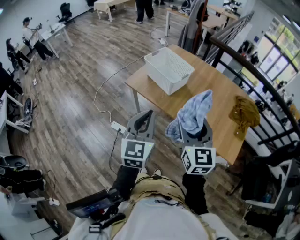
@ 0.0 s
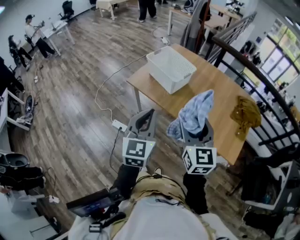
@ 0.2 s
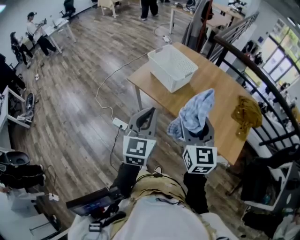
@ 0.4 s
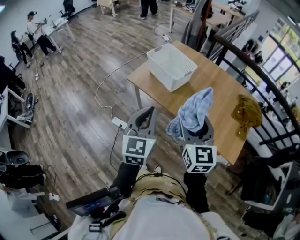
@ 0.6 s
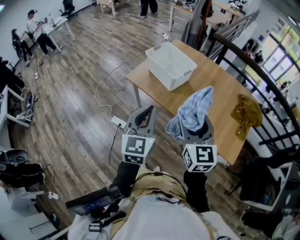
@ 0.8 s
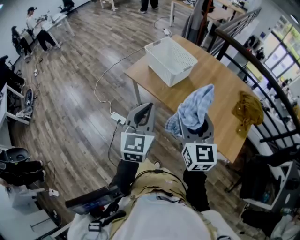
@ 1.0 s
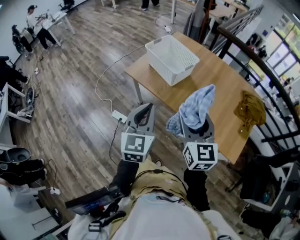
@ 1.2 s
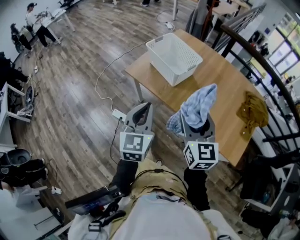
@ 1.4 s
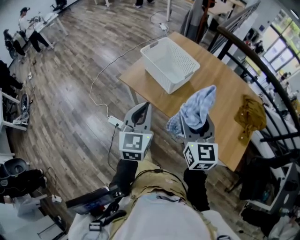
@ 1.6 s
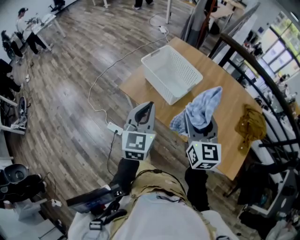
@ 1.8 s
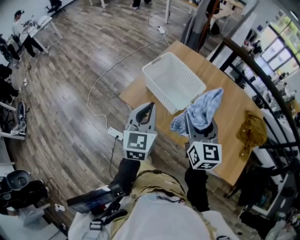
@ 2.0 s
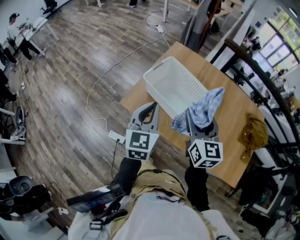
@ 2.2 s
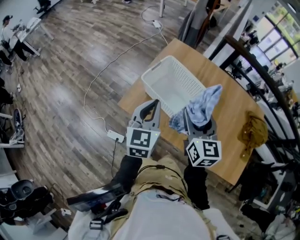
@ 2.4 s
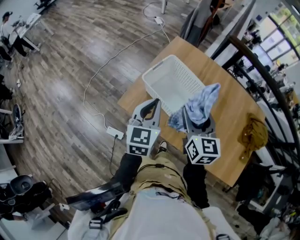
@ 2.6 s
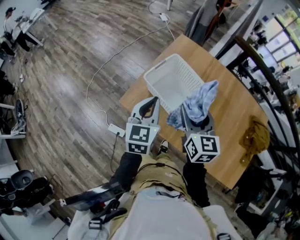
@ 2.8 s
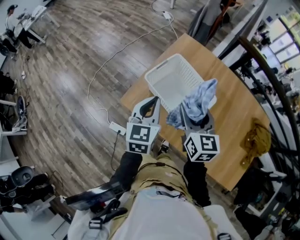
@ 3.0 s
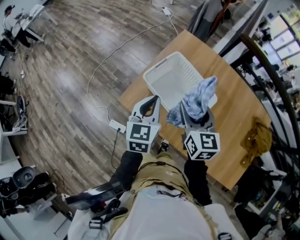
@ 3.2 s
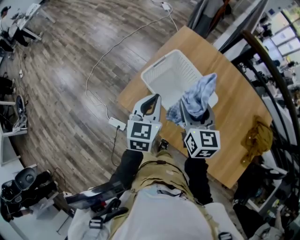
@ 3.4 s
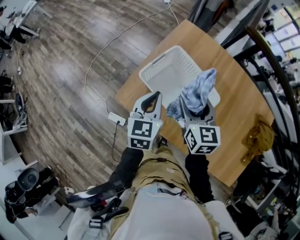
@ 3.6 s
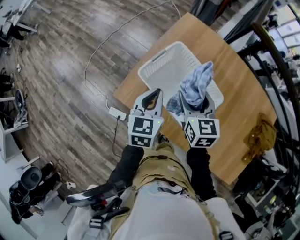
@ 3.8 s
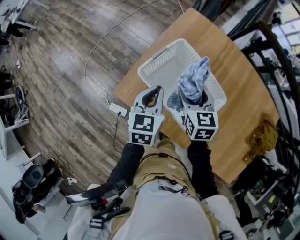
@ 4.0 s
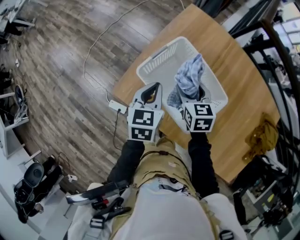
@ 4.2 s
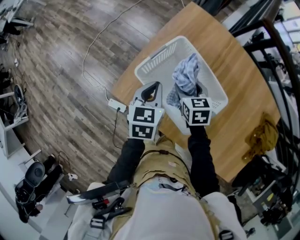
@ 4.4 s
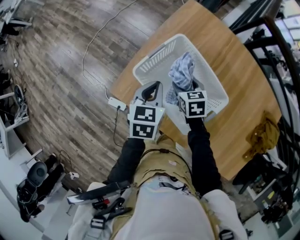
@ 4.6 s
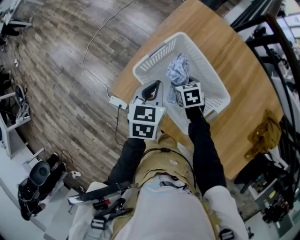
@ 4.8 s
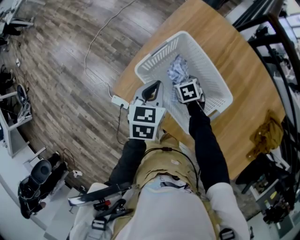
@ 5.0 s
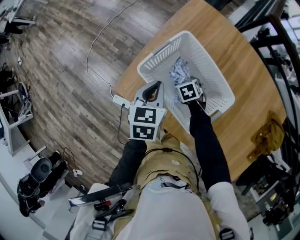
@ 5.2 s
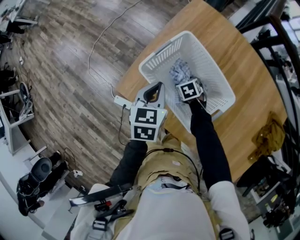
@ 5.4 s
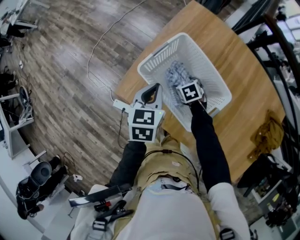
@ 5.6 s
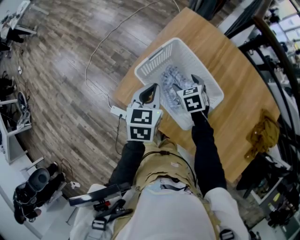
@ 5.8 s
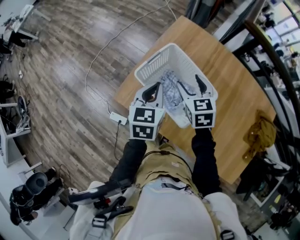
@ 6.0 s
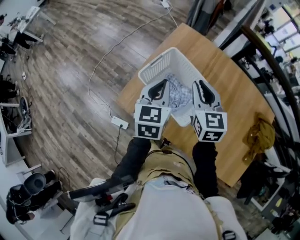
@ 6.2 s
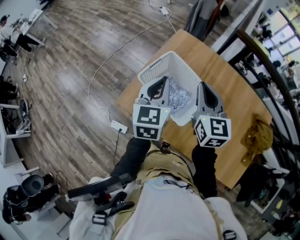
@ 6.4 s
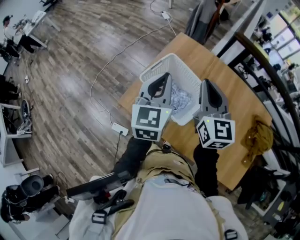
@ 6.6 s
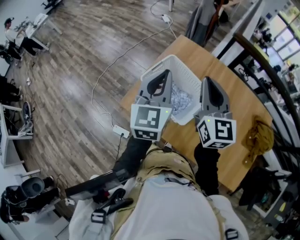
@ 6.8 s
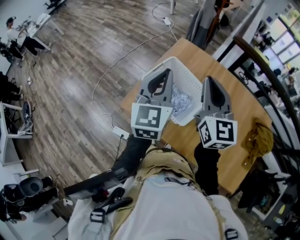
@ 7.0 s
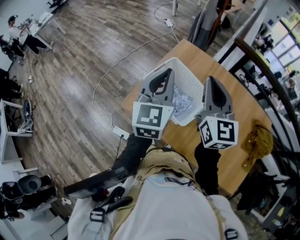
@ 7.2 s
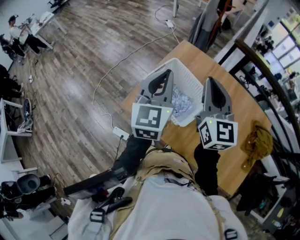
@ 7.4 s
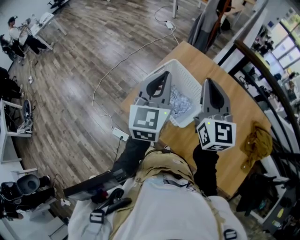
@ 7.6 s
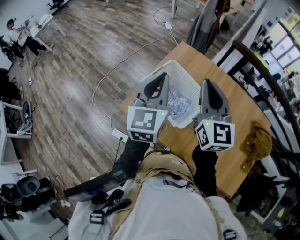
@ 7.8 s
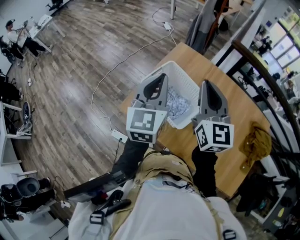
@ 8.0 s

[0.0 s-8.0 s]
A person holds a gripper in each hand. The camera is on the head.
0.0 to 1.6 s: Both grippers travel together forward and downward, some 15 cm.
1.6 to 3.2 s: The two grippers go approximately 30 cm forward.
3.2 to 4.8 s: The right gripper moves downward, about 30 cm, and tilts its fingers approximately 40 degrees downward. The left gripper shifts about 15 cm downward and forward, and swivels roughly 20 degrees.
4.8 to 6.4 s: The right gripper travels upward by about 35 cm, angles its fingers upward, by approximately 50 degrees, and closes its fingers; the left gripper travels upward by some 20 cm, and changes its angle by about 30 degrees.
6.4 to 8.0 s: The two grippers go approximately 10 cm upward.

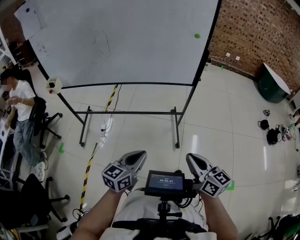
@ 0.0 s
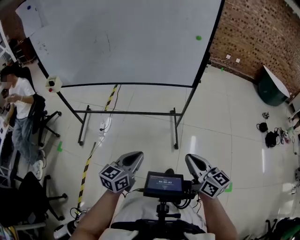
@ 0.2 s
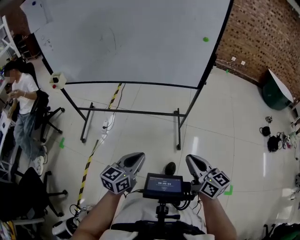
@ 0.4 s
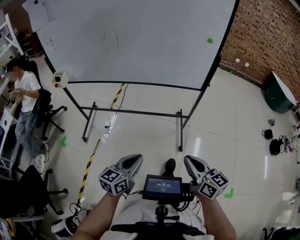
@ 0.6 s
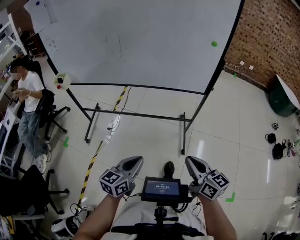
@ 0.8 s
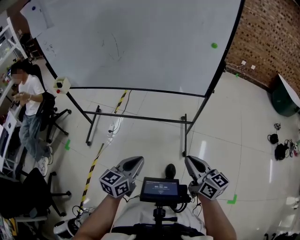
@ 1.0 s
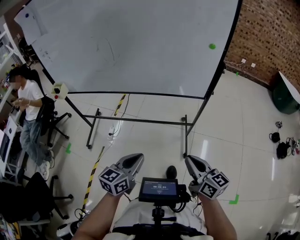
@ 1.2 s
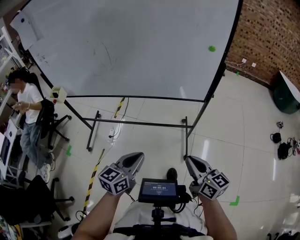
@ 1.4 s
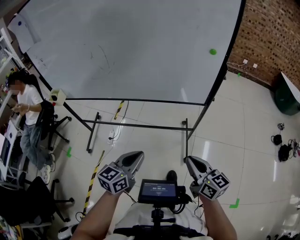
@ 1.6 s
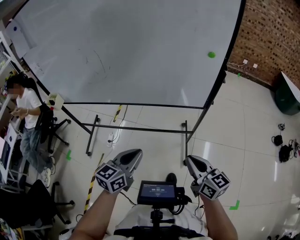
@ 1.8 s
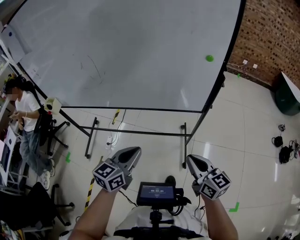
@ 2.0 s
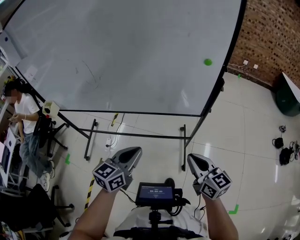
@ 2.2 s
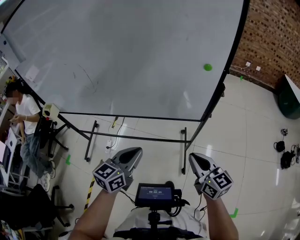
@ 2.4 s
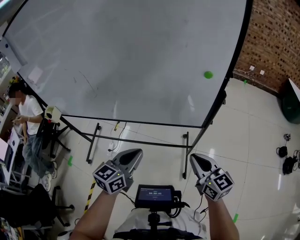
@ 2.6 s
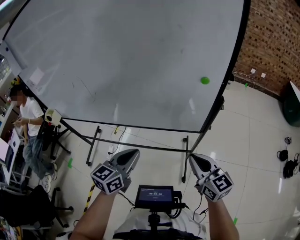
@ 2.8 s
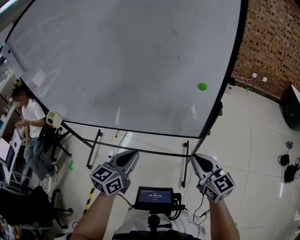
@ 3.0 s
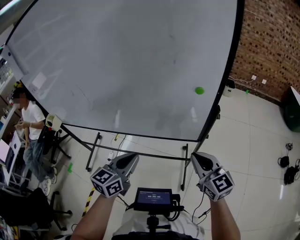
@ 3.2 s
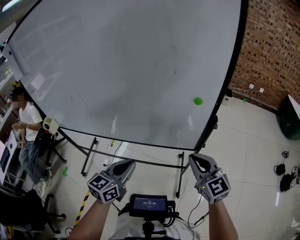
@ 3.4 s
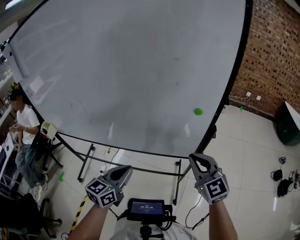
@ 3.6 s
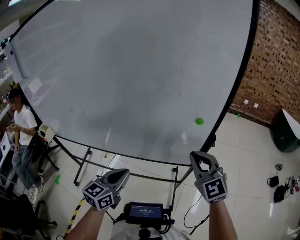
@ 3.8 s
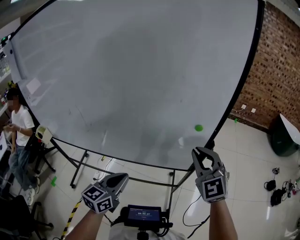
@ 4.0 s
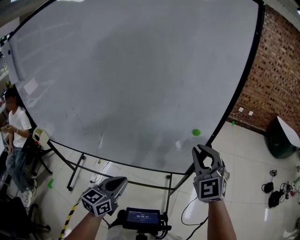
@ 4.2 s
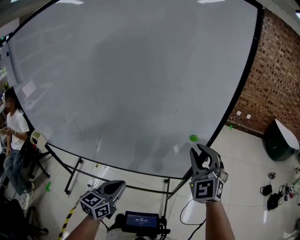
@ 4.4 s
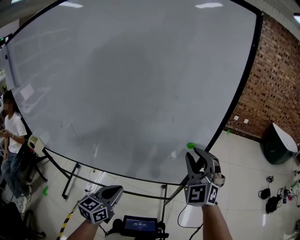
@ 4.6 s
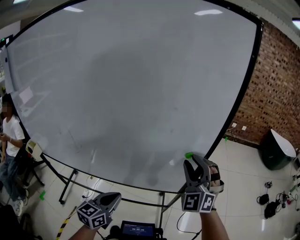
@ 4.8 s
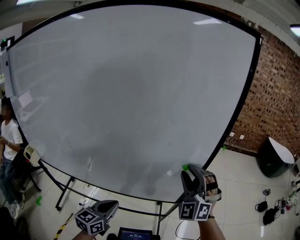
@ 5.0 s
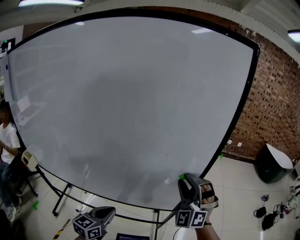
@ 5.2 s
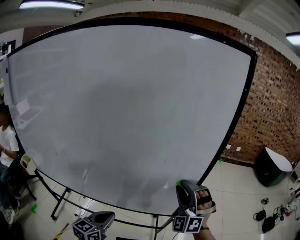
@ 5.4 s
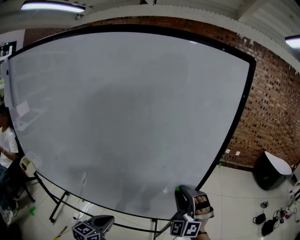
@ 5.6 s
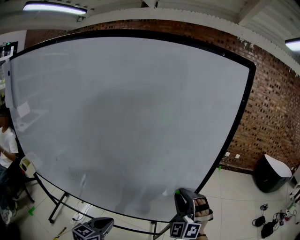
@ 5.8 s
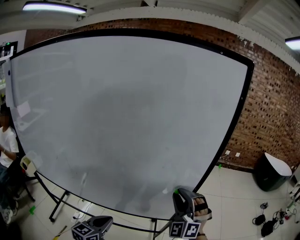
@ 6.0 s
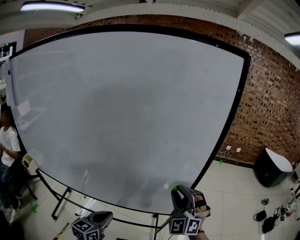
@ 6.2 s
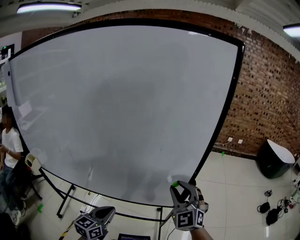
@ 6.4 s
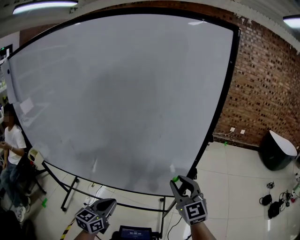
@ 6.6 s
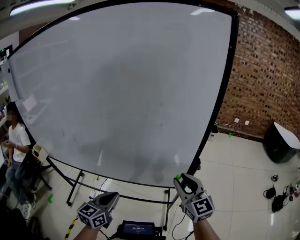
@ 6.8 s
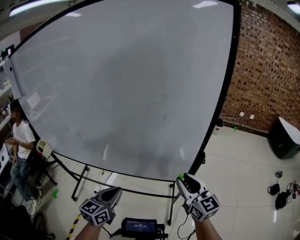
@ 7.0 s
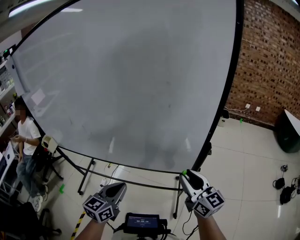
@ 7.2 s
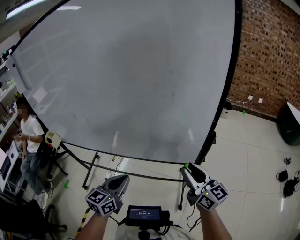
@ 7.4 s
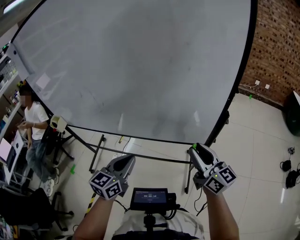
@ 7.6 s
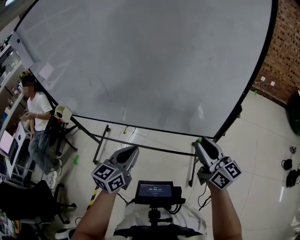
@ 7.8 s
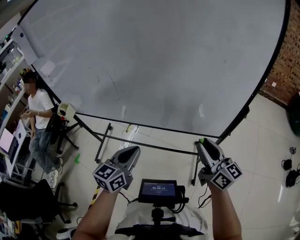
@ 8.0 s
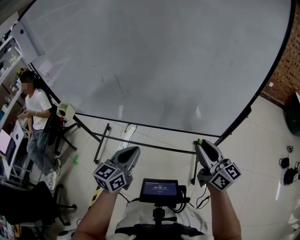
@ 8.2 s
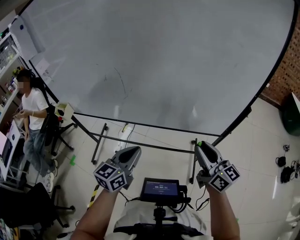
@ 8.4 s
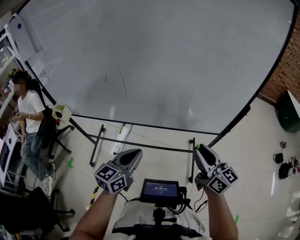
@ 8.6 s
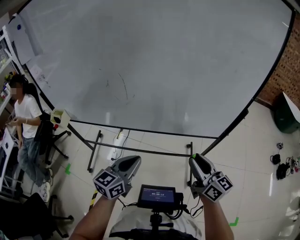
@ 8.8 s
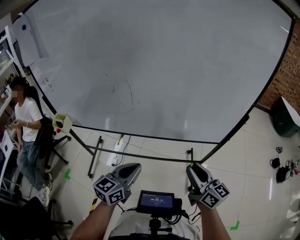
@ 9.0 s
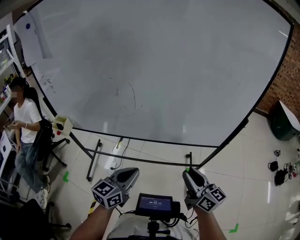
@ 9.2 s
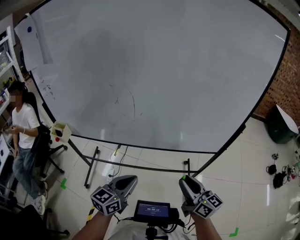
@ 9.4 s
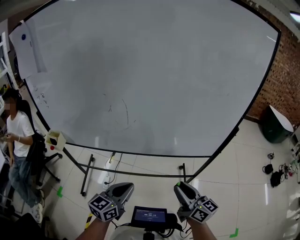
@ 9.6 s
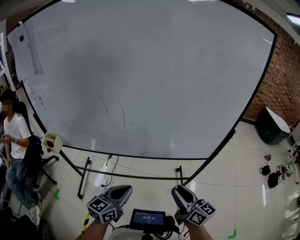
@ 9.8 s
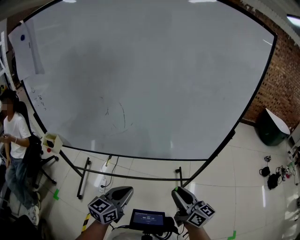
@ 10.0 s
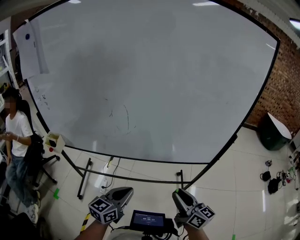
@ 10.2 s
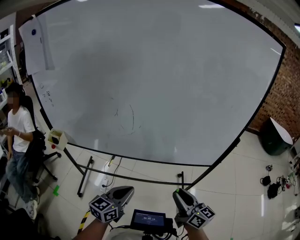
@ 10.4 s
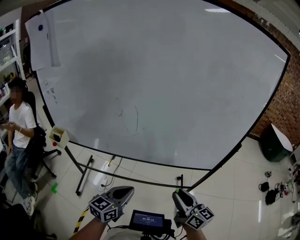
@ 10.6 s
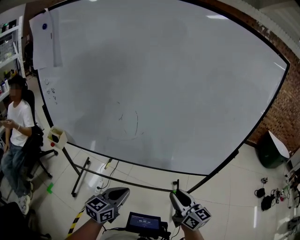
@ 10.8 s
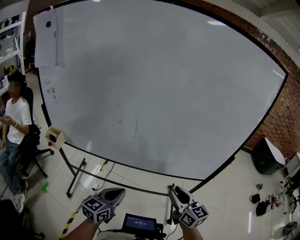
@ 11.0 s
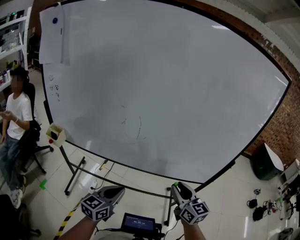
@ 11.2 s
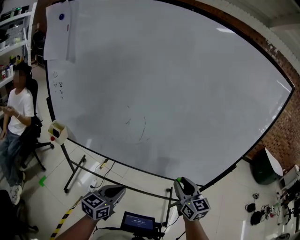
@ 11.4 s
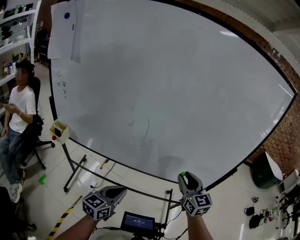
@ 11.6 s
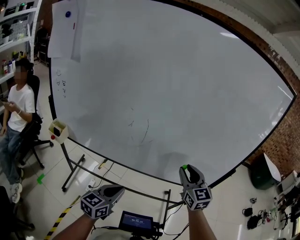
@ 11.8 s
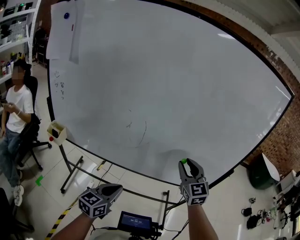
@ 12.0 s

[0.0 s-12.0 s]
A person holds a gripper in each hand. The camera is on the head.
0.0 to 1.6 s: The grippers both shift forward by some 20 cm.
1.6 to 3.0 s: The grippers both shift forward and to the right by approximately 25 cm.
3.0 to 4.4 s: The right gripper moves upward and forward, roughly 20 cm, and rotates around the line of its fingers by roughly 50 degrees, counterclockwise from behind; the left gripper is displaced forward by roughly 5 cm.
4.4 to 6.0 s: The right gripper moves roughly 5 cm, and swivels approximately 20 degrees.
6.0 to 7.6 s: The left gripper travels backward by approximately 5 cm. Meanwhile the right gripper moves backward and downward, about 15 cm, and rotates around the line of its fingers by some 90 degrees, clockwise from behind.
7.6 to 9.0 s: Both grippers travel together to the left, about 20 cm.
9.0 to 10.4 s: The right gripper moves to the left, about 5 cm.
10.4 to 12.0 s: The right gripper moves forward and upward, approximately 20 cm, and rolls counterclockwise, seen from behind, by about 50 degrees. The left gripper travels to the left by approximately 5 cm.

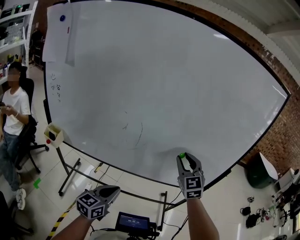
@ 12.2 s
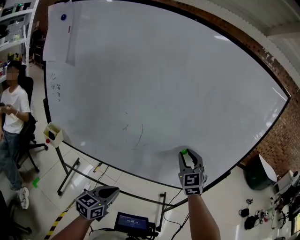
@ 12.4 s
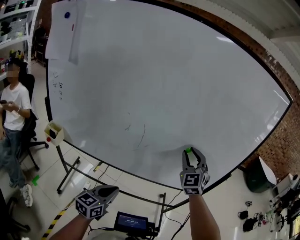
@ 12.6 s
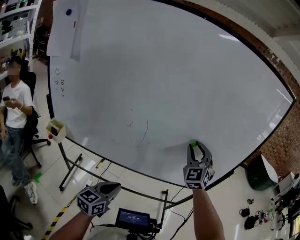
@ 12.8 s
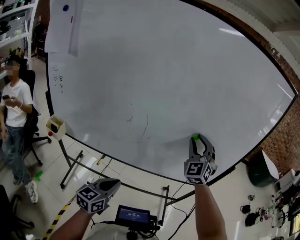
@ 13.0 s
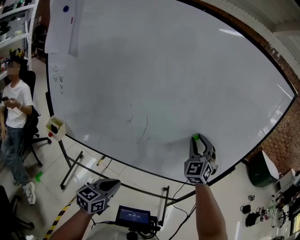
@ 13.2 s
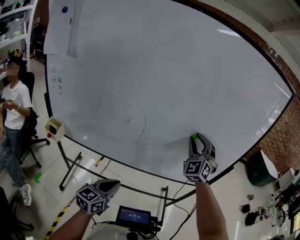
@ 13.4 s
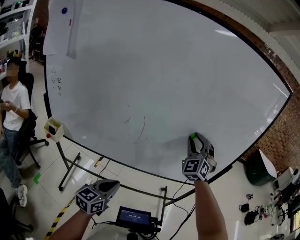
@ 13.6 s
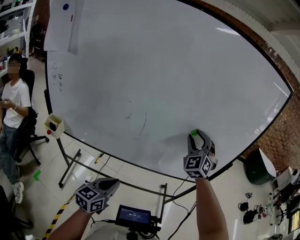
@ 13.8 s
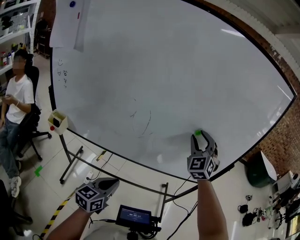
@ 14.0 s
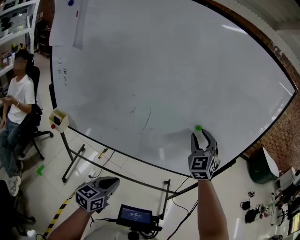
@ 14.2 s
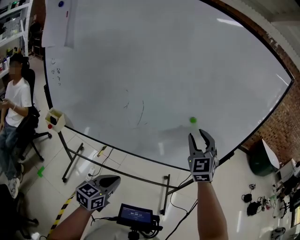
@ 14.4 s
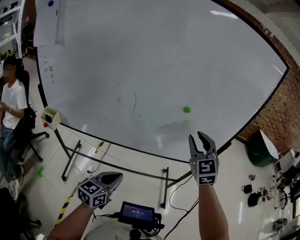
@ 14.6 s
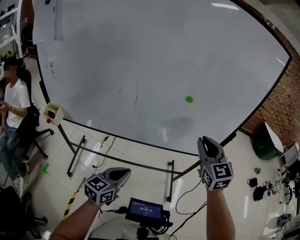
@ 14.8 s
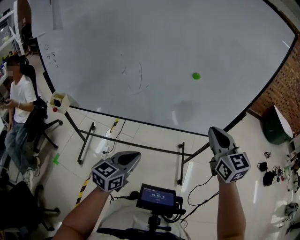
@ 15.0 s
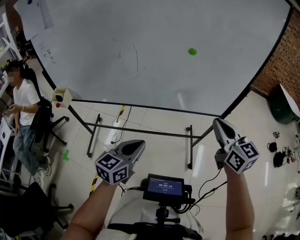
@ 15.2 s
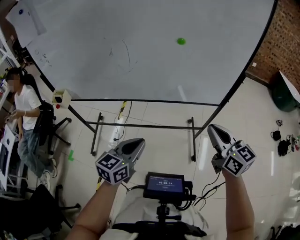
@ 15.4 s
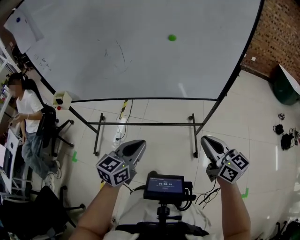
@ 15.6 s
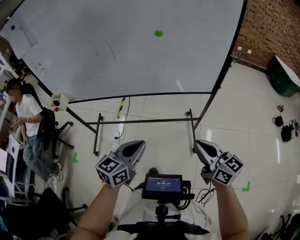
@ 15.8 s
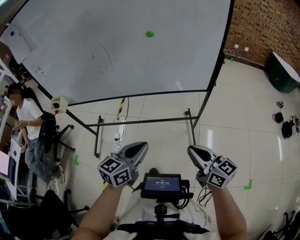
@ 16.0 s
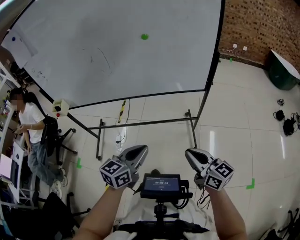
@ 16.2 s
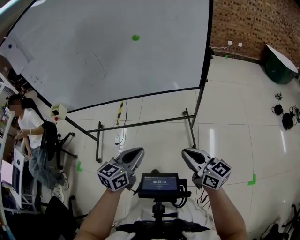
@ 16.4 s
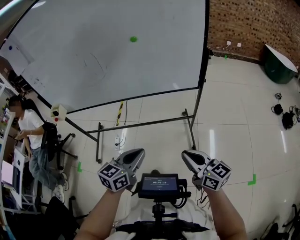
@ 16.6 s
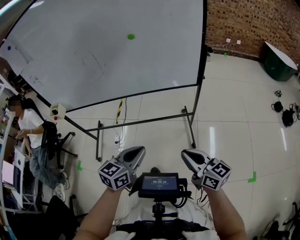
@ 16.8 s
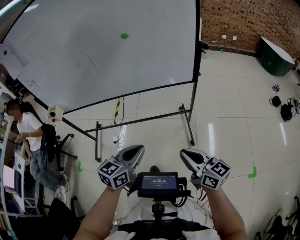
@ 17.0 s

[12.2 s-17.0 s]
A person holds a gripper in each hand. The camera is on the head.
12.2 to 13.8 s: The right gripper changes place by about 5 cm, and changes its angle by roughly 30 degrees.
13.8 to 15.4 s: The right gripper heads backward, to the right and downward, covering approximately 35 cm, twists approximately 70 degrees clockwise, seen from behind, and closes up, while the left gripper is displaced to the right and backward by about 15 cm.
15.4 to 17.0 s: The right gripper travels backward and downward by approximately 25 cm. The left gripper shifts approximately 20 cm to the right and backward.
